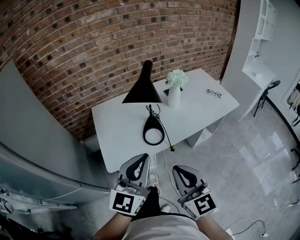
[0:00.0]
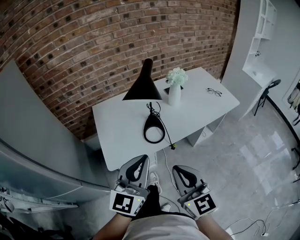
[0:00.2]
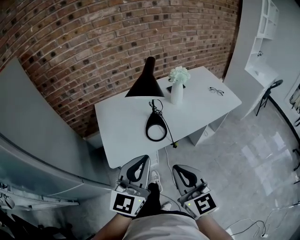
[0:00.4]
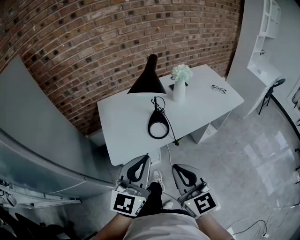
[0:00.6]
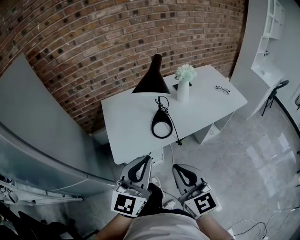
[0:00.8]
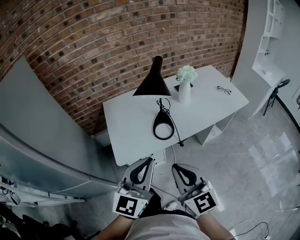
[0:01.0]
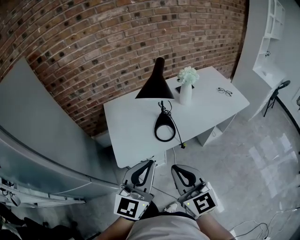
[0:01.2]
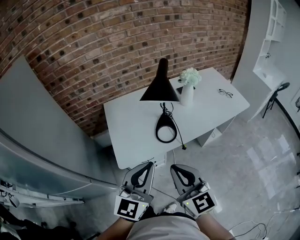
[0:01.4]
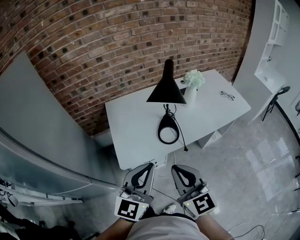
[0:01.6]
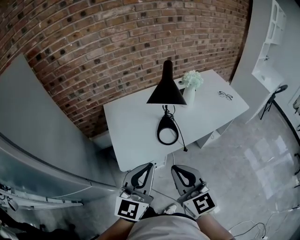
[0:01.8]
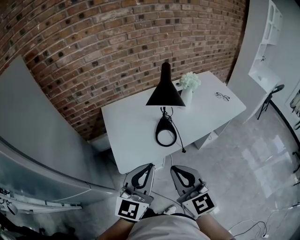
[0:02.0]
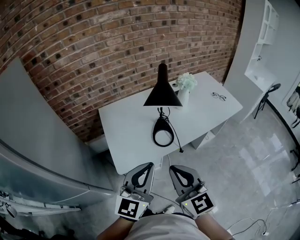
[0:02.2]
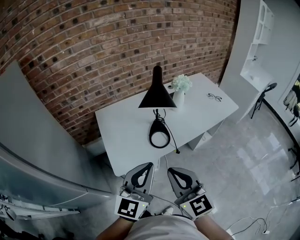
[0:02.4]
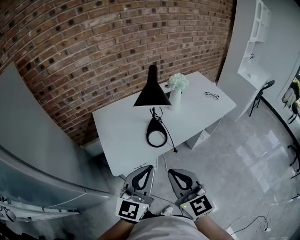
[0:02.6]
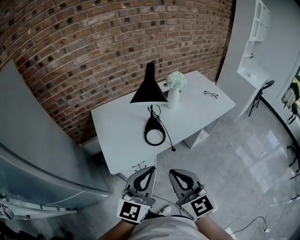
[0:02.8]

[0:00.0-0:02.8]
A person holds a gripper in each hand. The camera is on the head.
0:00.0 to 0:01.4: The right gripper is displaced to the left by about 5 cm.
0:01.4 to 0:02.8: There are only small adjustments of the grippers.

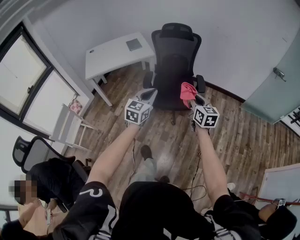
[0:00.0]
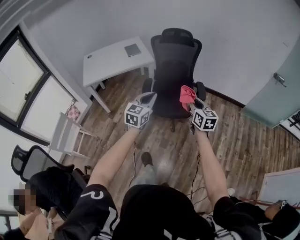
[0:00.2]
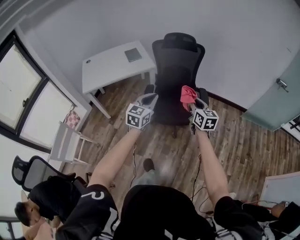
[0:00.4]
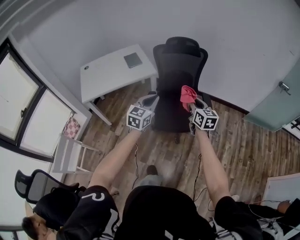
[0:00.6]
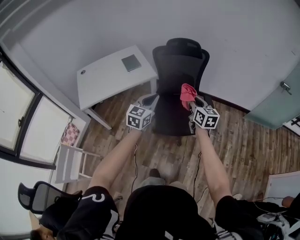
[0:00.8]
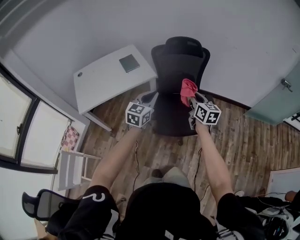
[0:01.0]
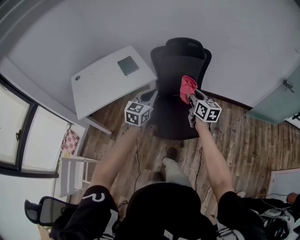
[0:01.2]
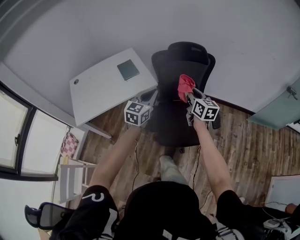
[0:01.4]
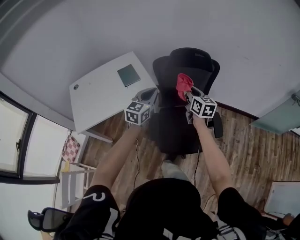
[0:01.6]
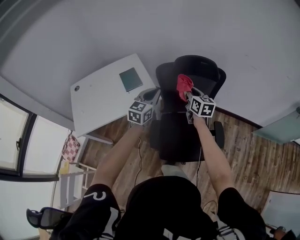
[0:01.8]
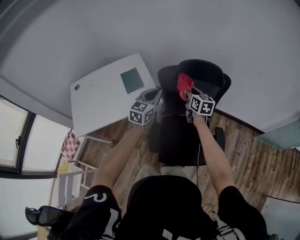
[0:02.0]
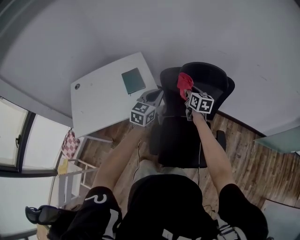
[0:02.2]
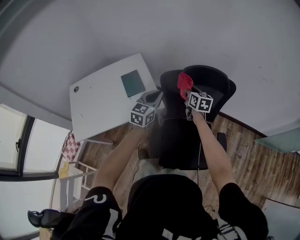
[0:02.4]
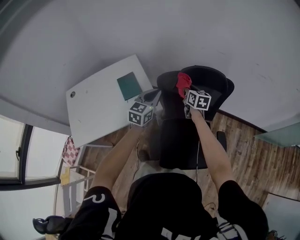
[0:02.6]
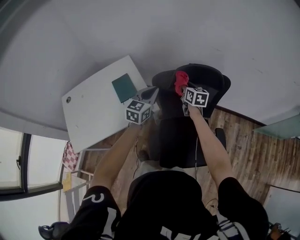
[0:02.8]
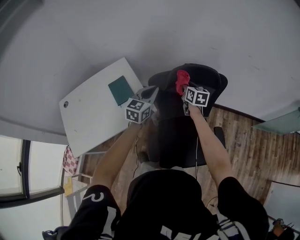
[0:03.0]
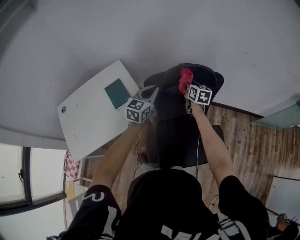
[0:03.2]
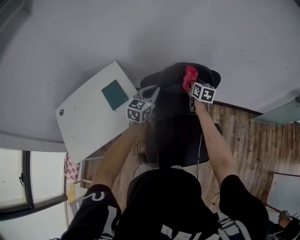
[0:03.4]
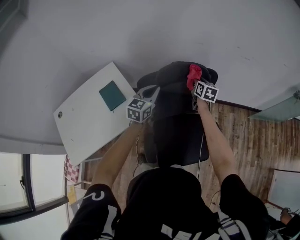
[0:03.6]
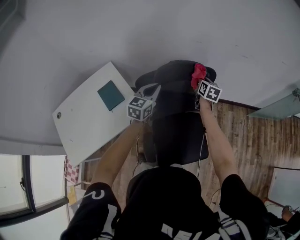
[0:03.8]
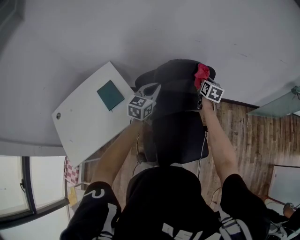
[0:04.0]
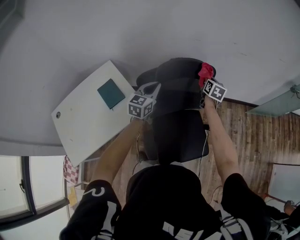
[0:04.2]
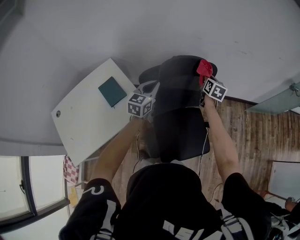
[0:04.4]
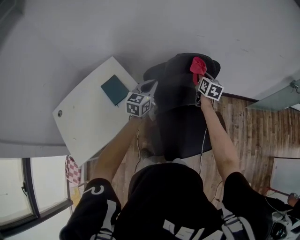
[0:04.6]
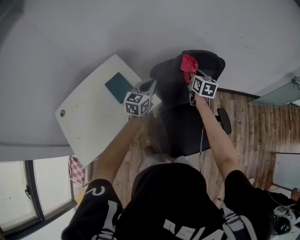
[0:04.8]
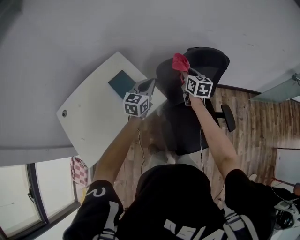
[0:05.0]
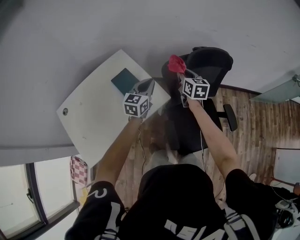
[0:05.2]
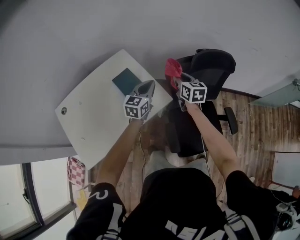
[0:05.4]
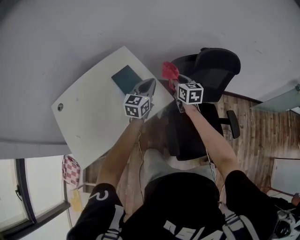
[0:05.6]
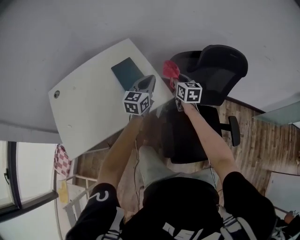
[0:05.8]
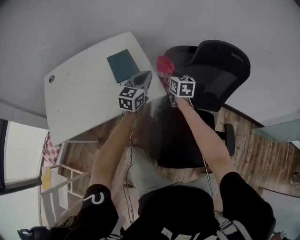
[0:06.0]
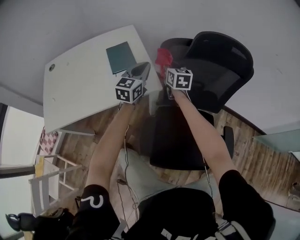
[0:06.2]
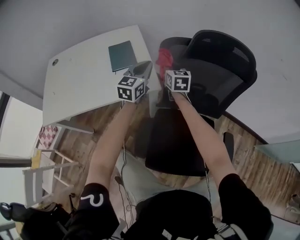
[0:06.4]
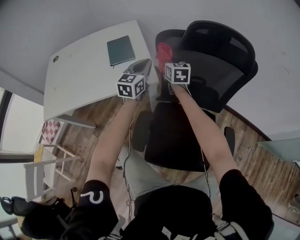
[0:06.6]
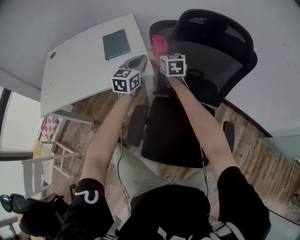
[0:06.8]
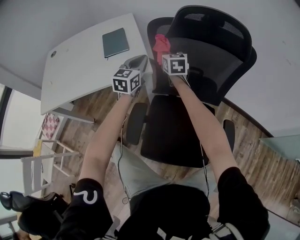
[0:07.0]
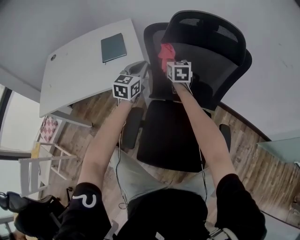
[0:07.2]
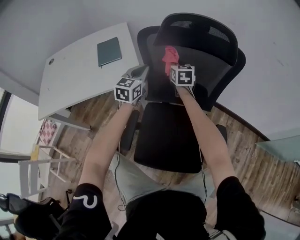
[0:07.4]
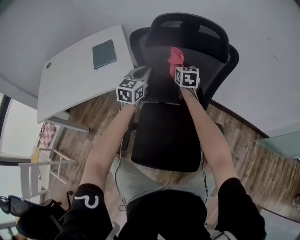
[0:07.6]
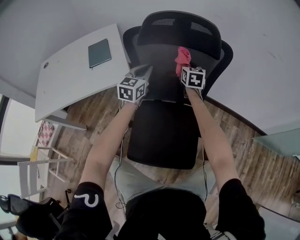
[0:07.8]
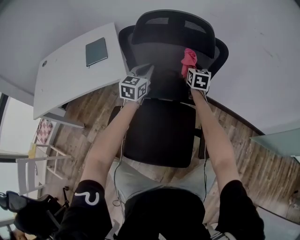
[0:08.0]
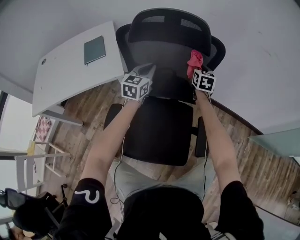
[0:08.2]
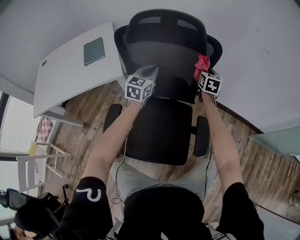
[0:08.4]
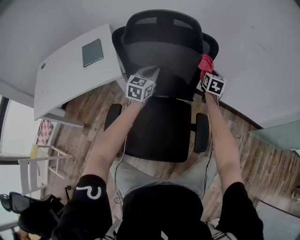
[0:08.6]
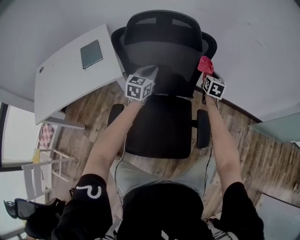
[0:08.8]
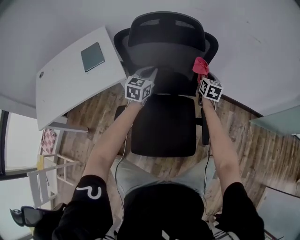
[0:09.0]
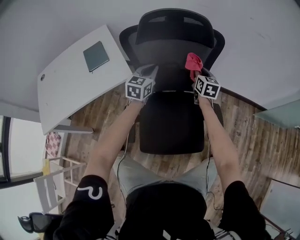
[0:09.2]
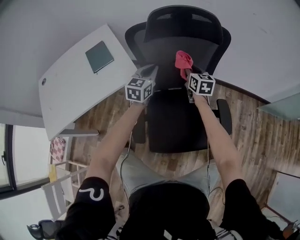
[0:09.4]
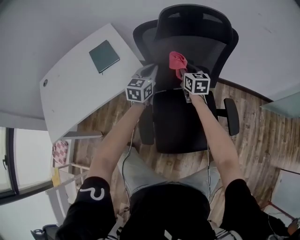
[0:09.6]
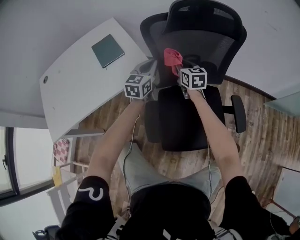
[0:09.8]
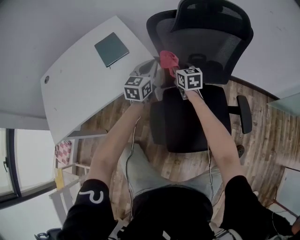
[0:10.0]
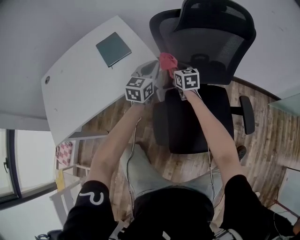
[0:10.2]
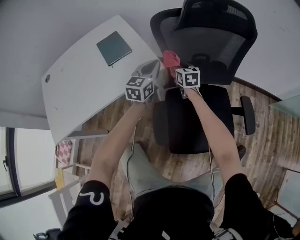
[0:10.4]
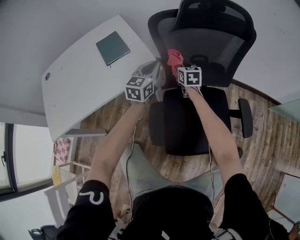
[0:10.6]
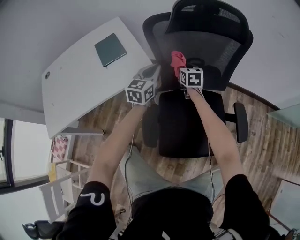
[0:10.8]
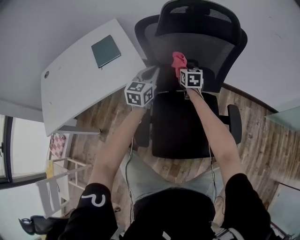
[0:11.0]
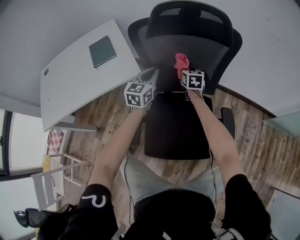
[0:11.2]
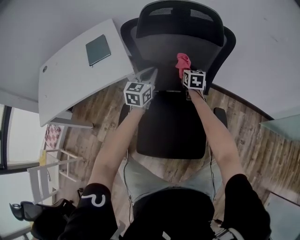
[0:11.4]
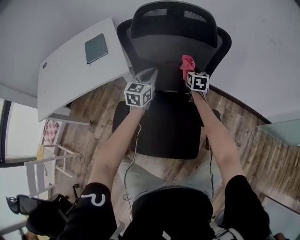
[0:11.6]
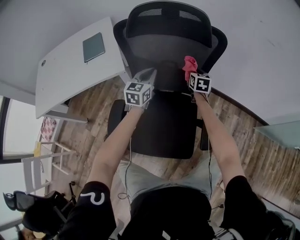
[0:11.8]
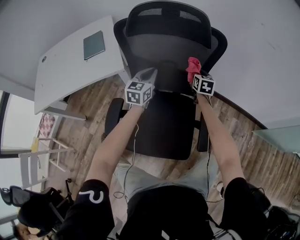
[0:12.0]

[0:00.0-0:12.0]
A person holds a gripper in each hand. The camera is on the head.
0:00.0 to 0:01.6: Both grippers are carried forward, approximately 60 cm.
0:01.6 to 0:03.0: Both grippers travel together forward, some 25 cm.
0:03.0 to 0:04.4: The right gripper travels to the right by roughly 15 cm, and turns by about 30 degrees.
0:04.4 to 0:06.0: The right gripper changes place by roughly 40 cm, and swivels approximately 40 degrees. Meanwhile the left gripper shifts by approximately 20 cm.
0:06.0 to 0:07.6: The two grippers go some 20 cm to the right.
0:07.6 to 0:09.0: The right gripper is displaced to the right by some 25 cm. Meanwhile the left gripper heads to the right, covering approximately 10 cm.
0:09.0 to 0:10.4: The right gripper travels to the left by about 35 cm; the left gripper goes some 20 cm to the left.
0:10.4 to 0:12.0: The right gripper travels to the right by roughly 35 cm, while the left gripper heads to the right, covering approximately 20 cm.

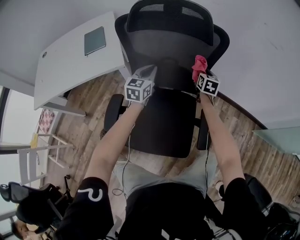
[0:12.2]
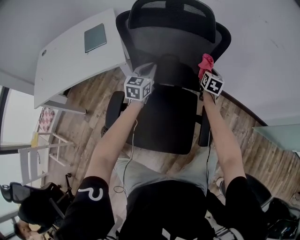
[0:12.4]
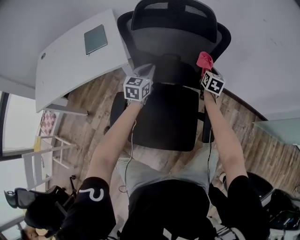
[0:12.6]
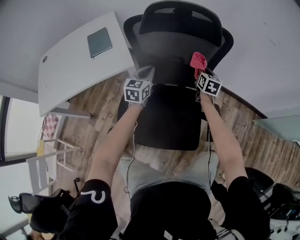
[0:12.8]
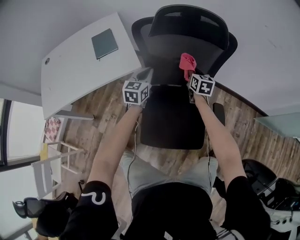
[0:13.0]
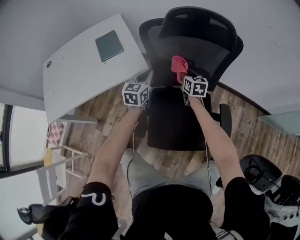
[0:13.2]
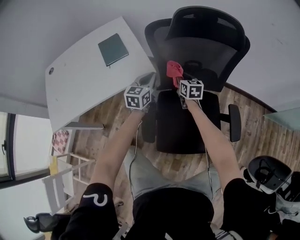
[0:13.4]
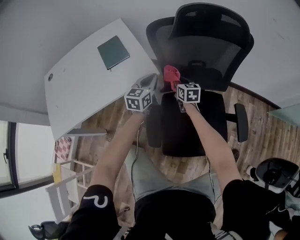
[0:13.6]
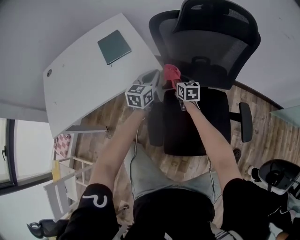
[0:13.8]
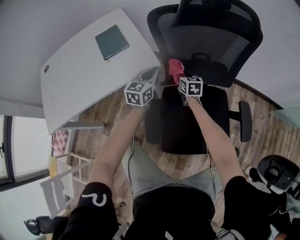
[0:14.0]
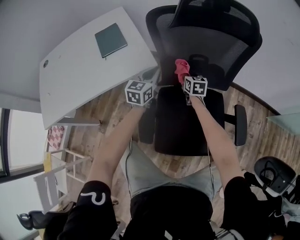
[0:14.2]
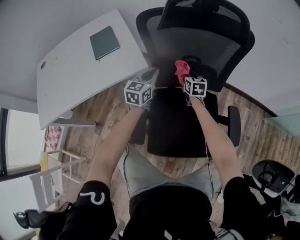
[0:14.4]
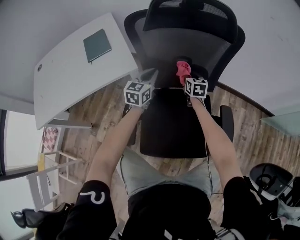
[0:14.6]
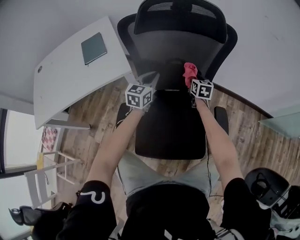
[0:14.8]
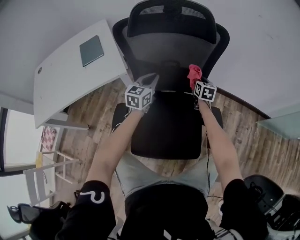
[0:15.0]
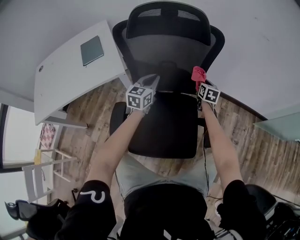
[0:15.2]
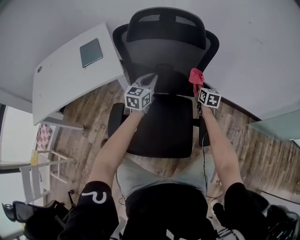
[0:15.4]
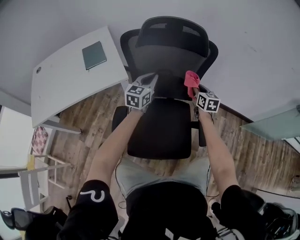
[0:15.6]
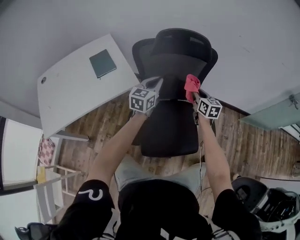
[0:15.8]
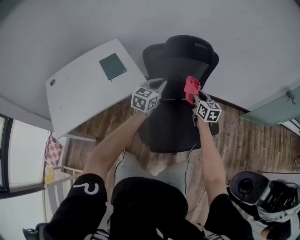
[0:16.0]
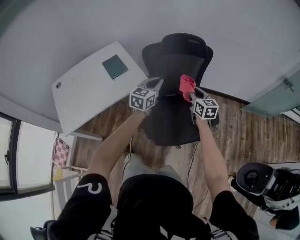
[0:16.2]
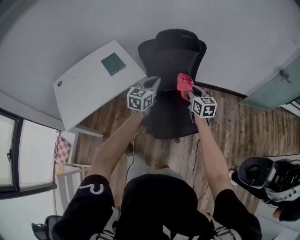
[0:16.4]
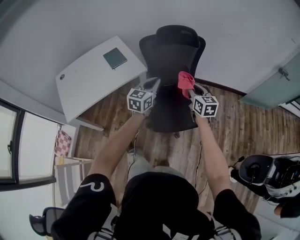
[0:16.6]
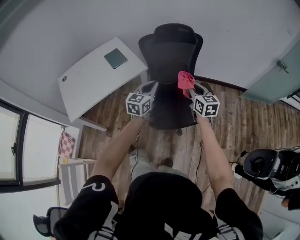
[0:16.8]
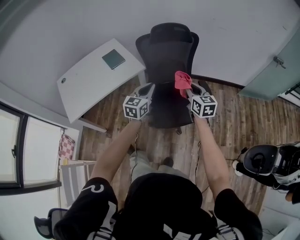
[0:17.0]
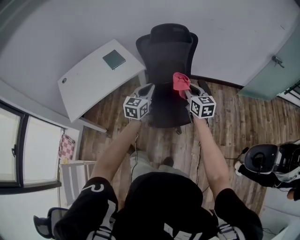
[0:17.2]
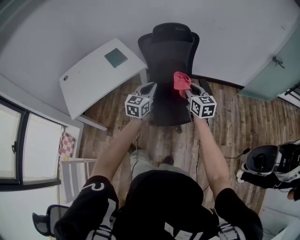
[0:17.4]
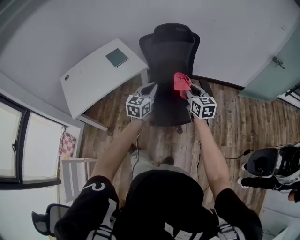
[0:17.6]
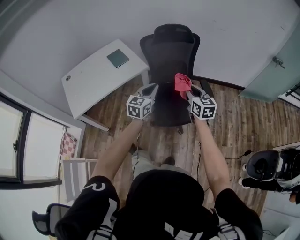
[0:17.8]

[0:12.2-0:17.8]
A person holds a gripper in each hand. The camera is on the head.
0:12.2 to 0:13.6: The left gripper shifts some 20 cm to the left. The right gripper shifts approximately 35 cm to the left.
0:13.6 to 0:15.0: The right gripper goes roughly 30 cm to the right, while the left gripper heads to the right, covering roughly 20 cm.
0:15.0 to 0:16.4: The grippers both shift upward and backward by approximately 40 cm.
0:16.4 to 0:17.8: Both grippers move backward, about 20 cm.

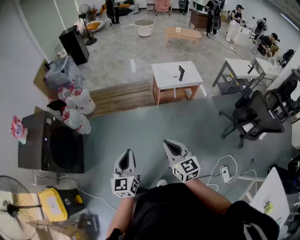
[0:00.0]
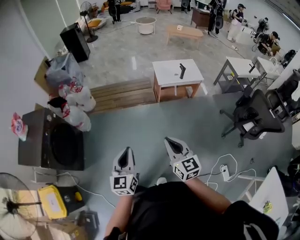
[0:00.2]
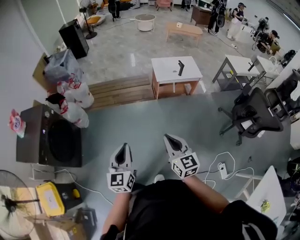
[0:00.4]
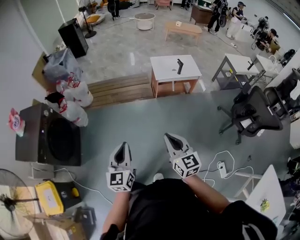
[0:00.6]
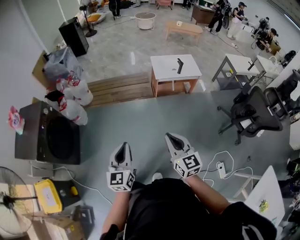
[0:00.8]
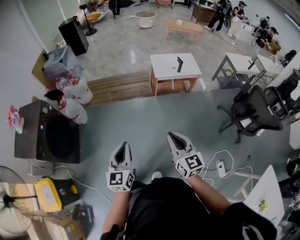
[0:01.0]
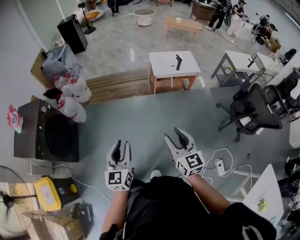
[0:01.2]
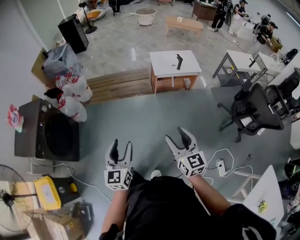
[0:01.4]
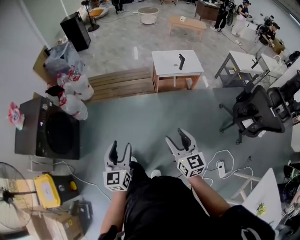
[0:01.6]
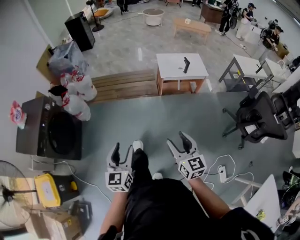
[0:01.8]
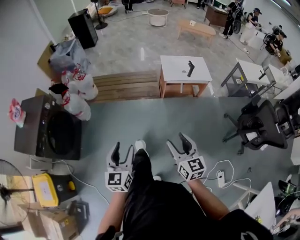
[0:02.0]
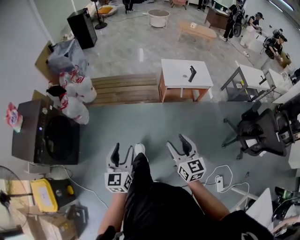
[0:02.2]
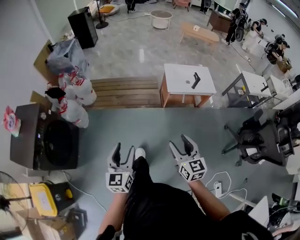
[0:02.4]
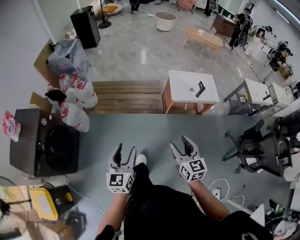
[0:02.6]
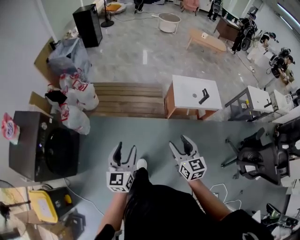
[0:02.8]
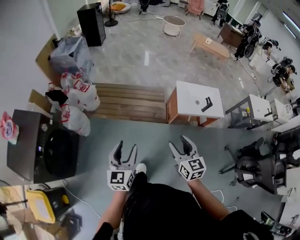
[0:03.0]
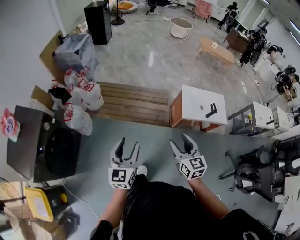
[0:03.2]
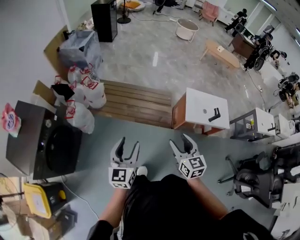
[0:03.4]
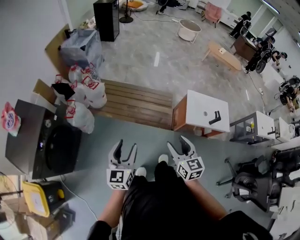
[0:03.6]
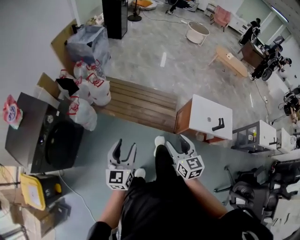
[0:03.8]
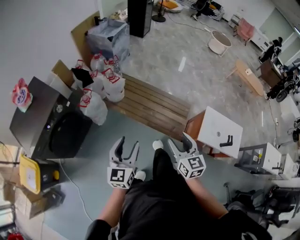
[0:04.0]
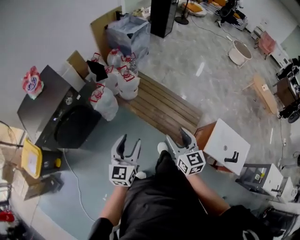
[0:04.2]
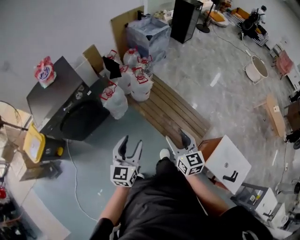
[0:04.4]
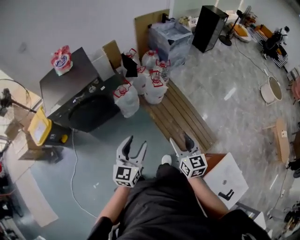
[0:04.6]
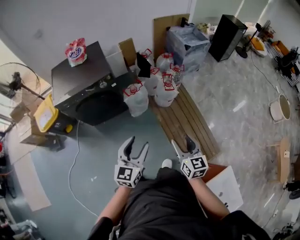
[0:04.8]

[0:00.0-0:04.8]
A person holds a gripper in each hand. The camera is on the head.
0:00.0 to 0:01.6: The right gripper moves to the right, approximately 10 cm, and opens up. The left gripper opens.
0:01.6 to 0:03.2: The pair of grippers is taken forward, approximately 50 cm.
0:03.2 to 0:04.8: The left gripper shifts by approximately 20 cm, and turns by roughly 50 degrees; the right gripper moves some 40 cm, and rotates roughly 60 degrees.
